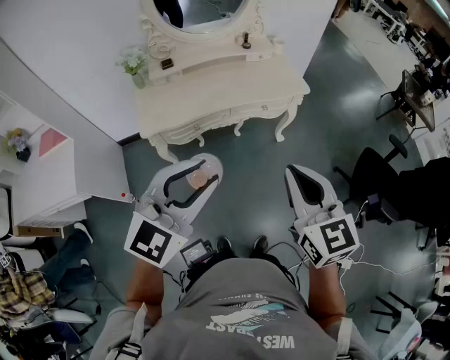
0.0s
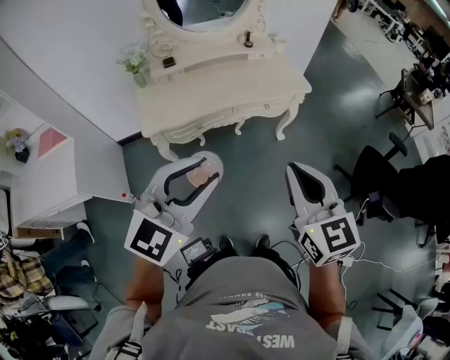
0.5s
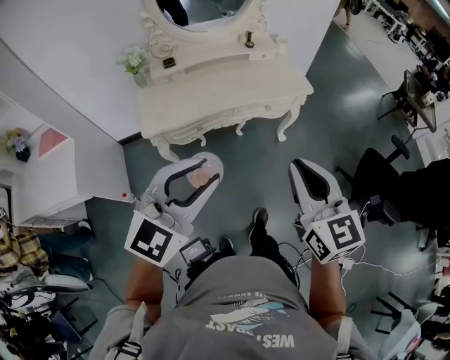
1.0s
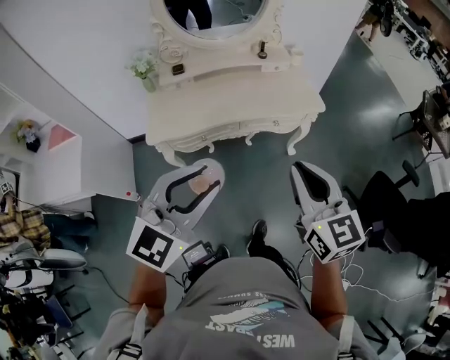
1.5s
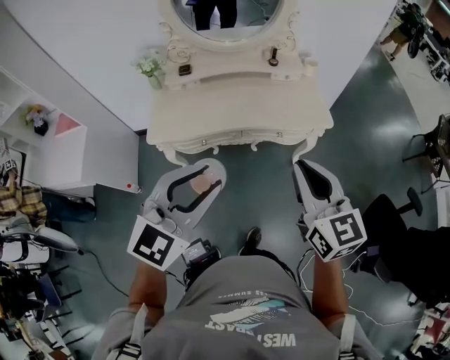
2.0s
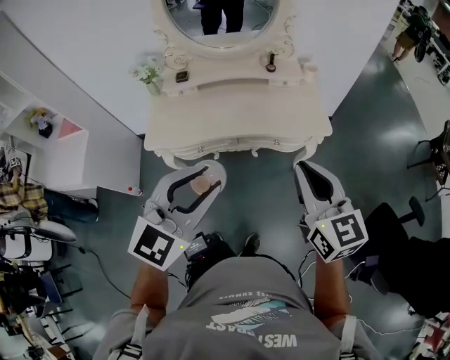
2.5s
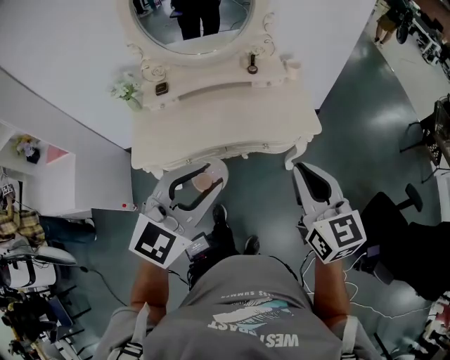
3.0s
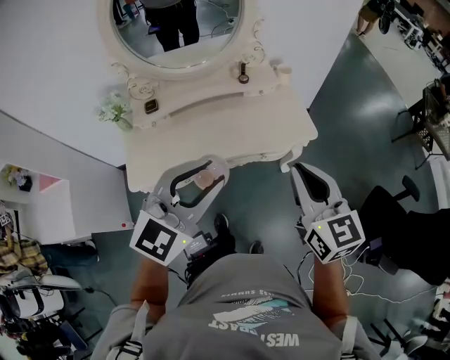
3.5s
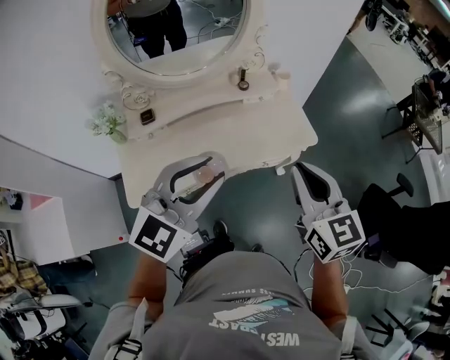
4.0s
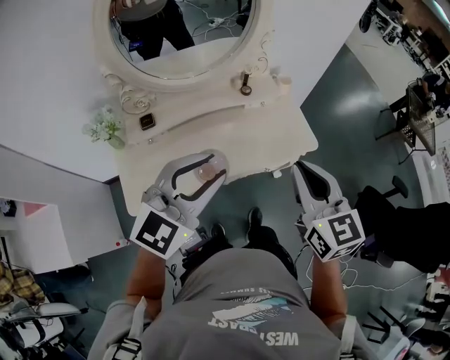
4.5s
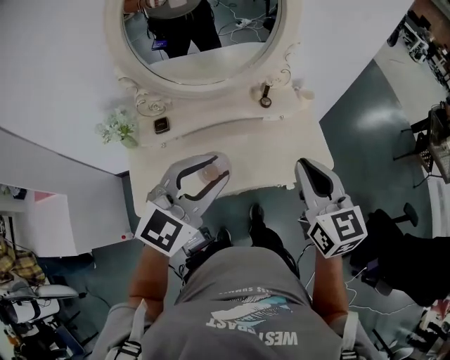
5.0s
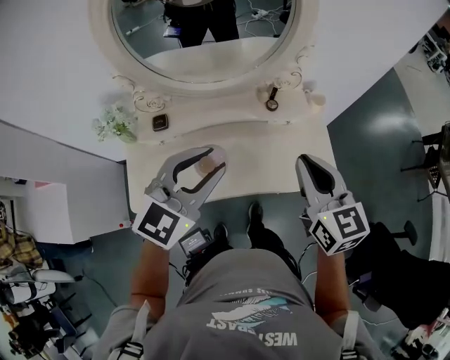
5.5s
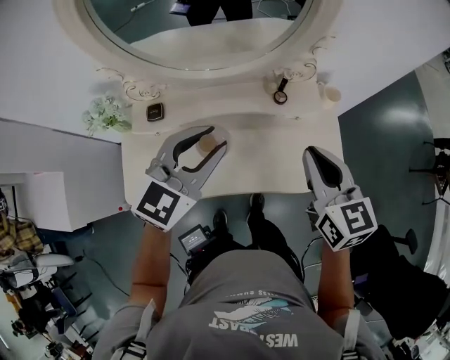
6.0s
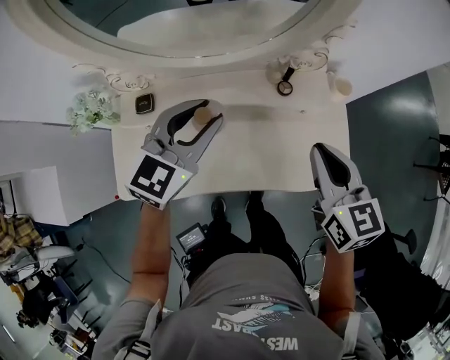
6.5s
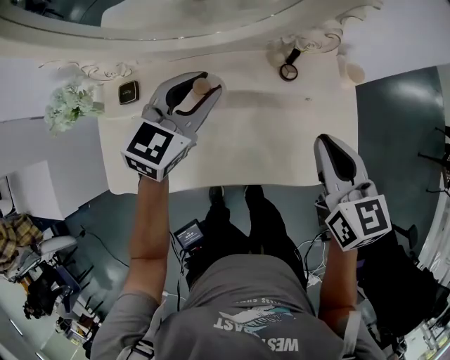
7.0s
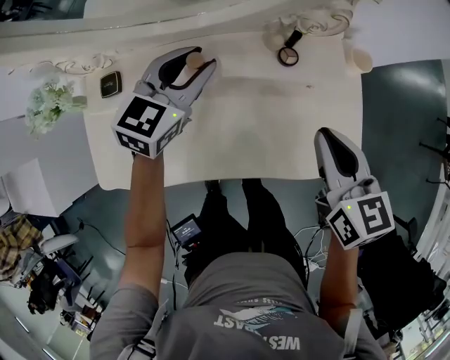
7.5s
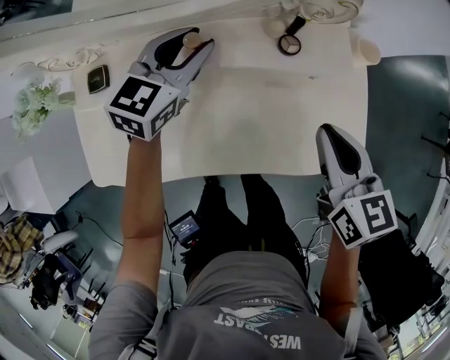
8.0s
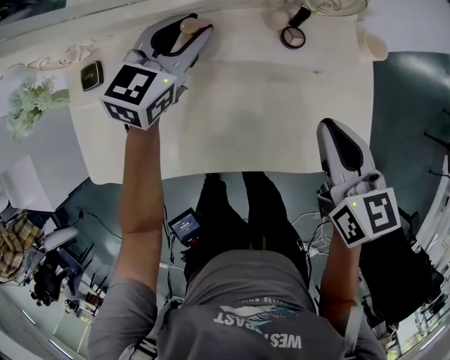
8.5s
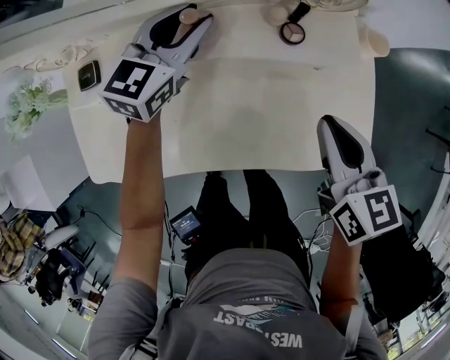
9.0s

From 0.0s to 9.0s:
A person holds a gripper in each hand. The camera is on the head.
From 0.0s to 2.0s: The grippers both shift forward by roughly 20 cm.
From 2.0s to 4.5s: The two grippers go some 25 cm forward.
From 4.5s to 7.0s: The two grippers go approximately 40 cm forward and downward. The left gripper changes its angle by approximately 30 degrees. Meanwhile the right gripper changes its angle by some 20 degrees.
From 7.0s to 9.0s: The right gripper travels downward by roughly 10 cm; the left gripper shifts about 15 cm downward and forward.

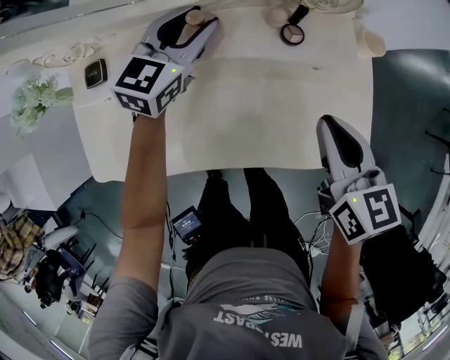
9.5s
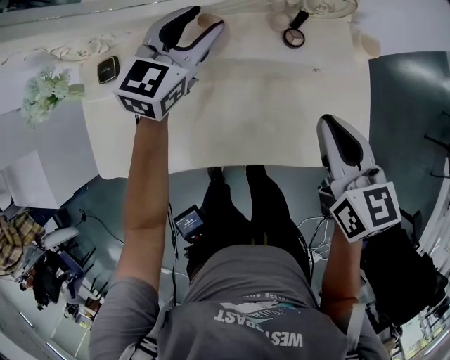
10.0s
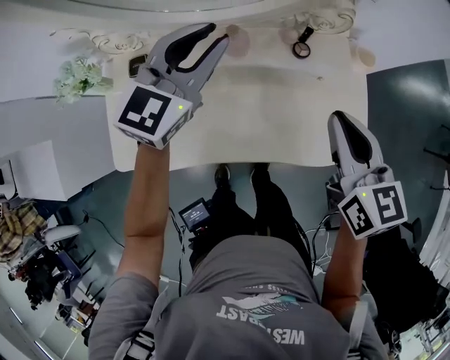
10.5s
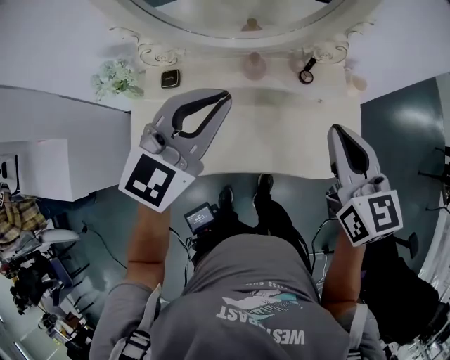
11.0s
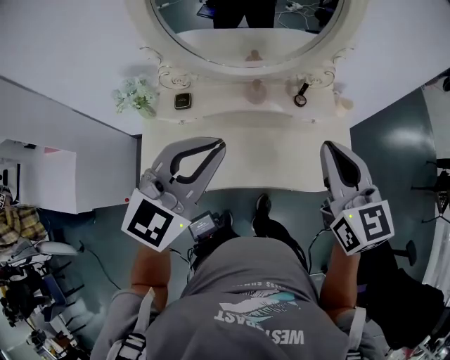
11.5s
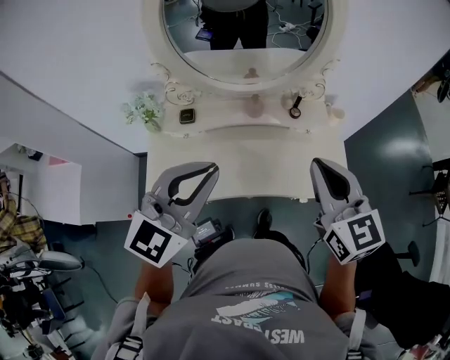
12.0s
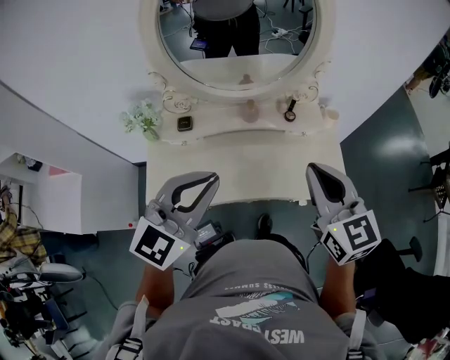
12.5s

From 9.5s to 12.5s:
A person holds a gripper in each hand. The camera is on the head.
From 9.5s to 11.0s: The left gripper heads upward and backward, covering approximately 35 cm, and closes its fingers; the right gripper is displaced upward by approximately 20 cm.
From 11.0s to 12.5s: The right gripper travels backward and upward by some 15 cm; the left gripper heads backward, covering roughly 15 cm.

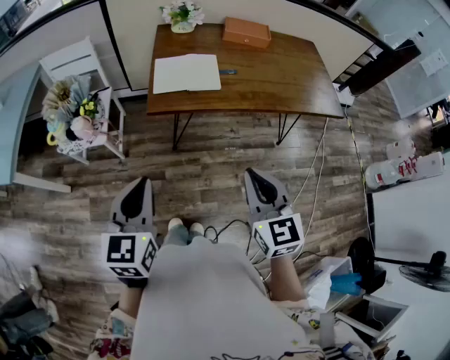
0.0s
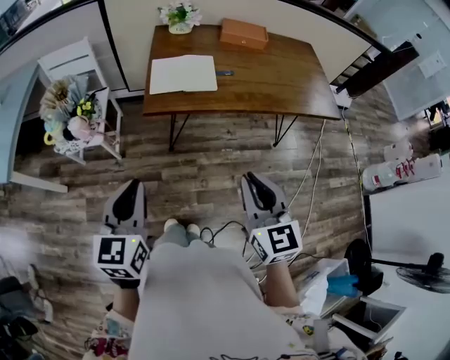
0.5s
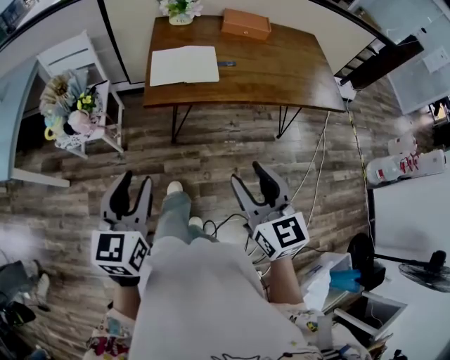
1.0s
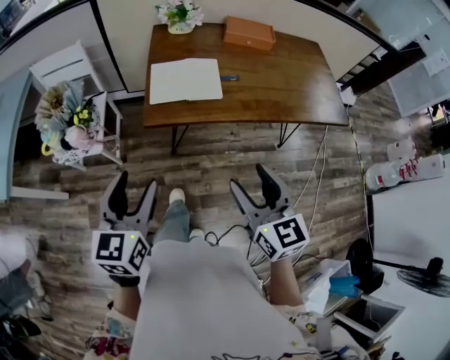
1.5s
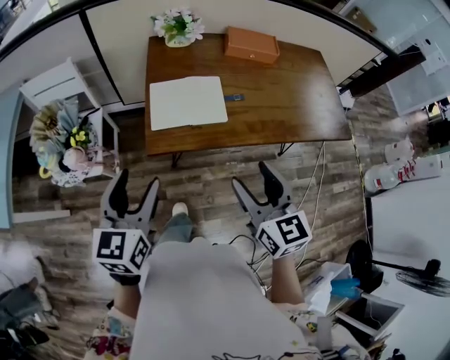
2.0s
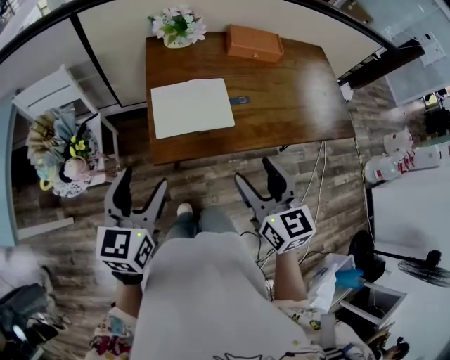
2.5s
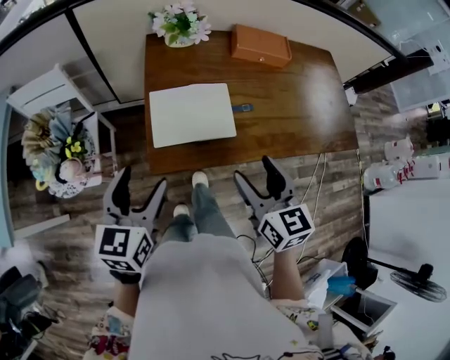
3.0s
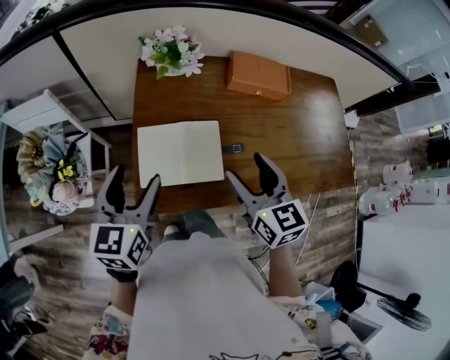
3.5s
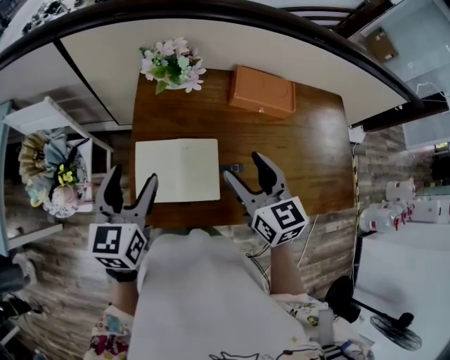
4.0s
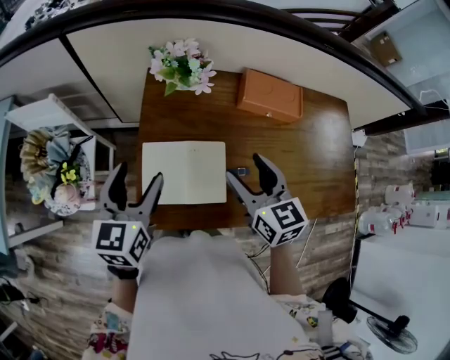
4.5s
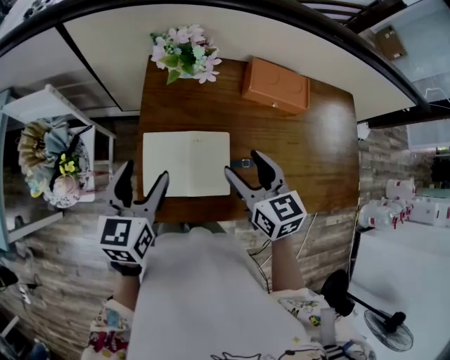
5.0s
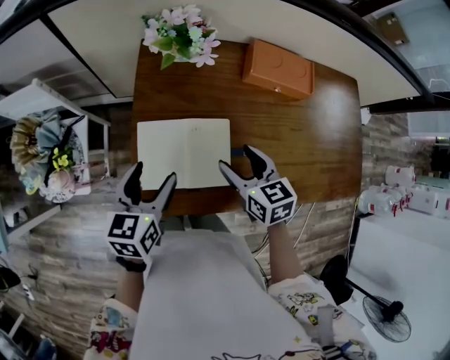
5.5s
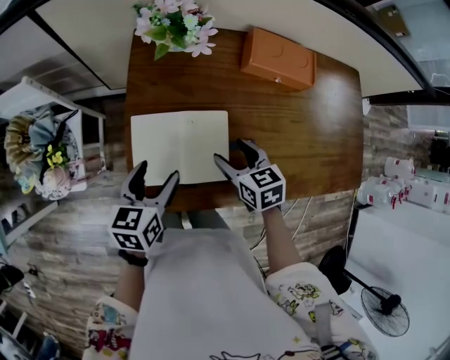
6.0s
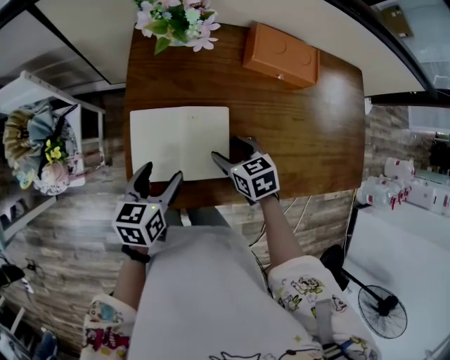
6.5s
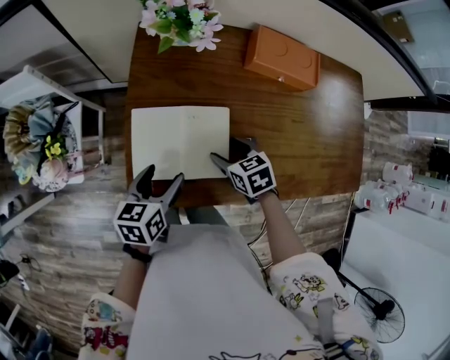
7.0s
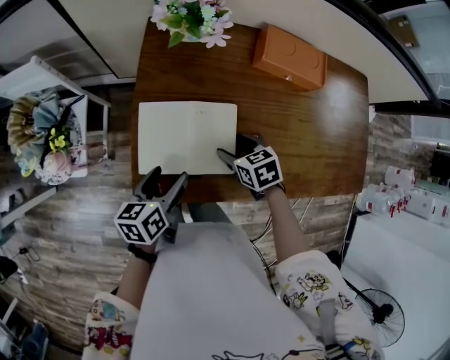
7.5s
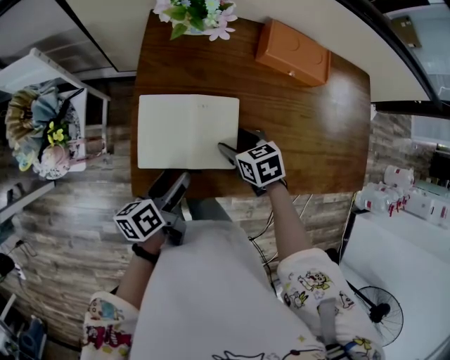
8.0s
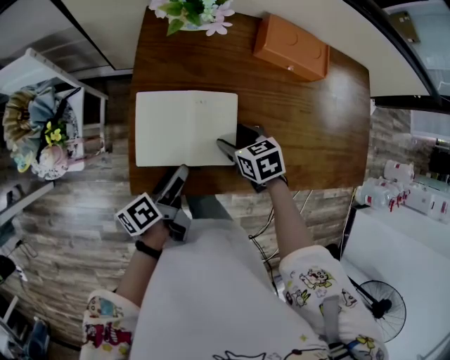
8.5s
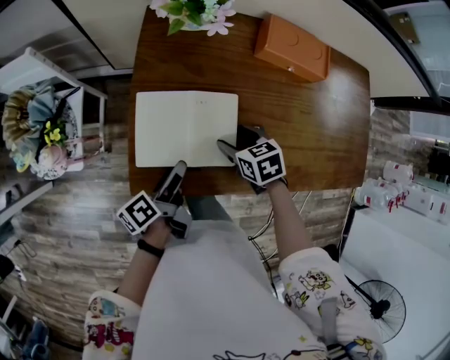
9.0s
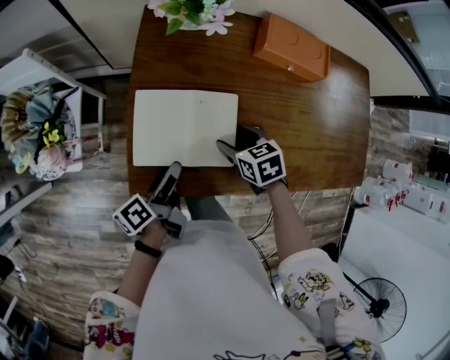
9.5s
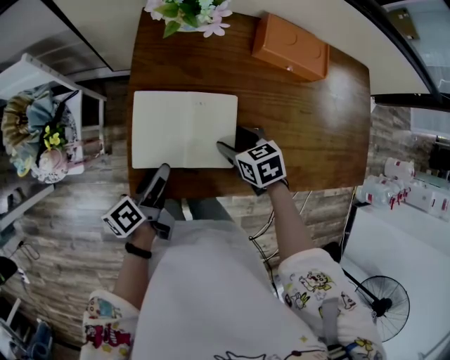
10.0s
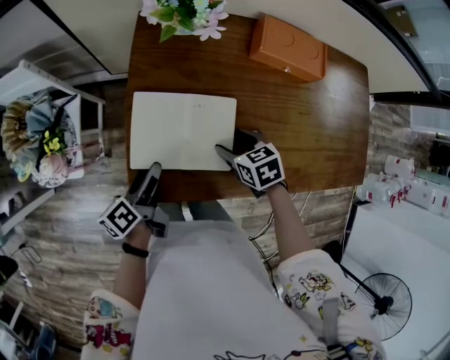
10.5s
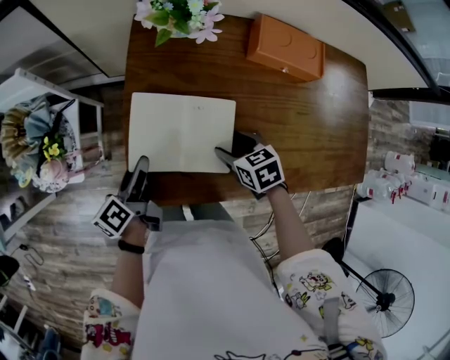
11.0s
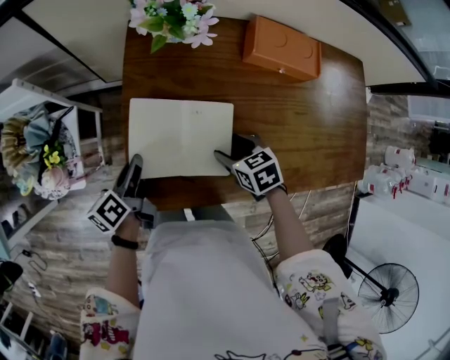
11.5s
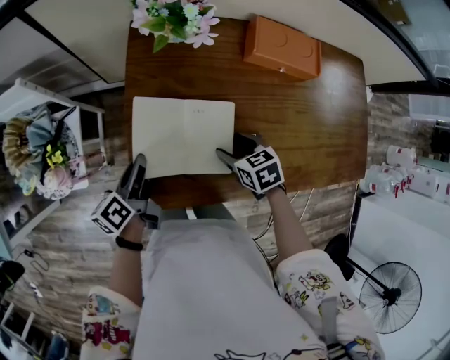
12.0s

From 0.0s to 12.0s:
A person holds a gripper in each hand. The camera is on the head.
From 0.0s to 2.0s: Both grippers move forward, roughly 20 cm. The left gripper opens its fingers. The right gripper opens its fingers.
From 2.0s to 4.0s: The grippers both shift forward by roughly 30 cm.
From 4.0s to 6.0s: The grippers both shift downward by some 15 cm. The right gripper rotates roughly 30 degrees; the left gripper turns by about 20 degrees.
From 6.0s to 8.0s: The right gripper shifts about 5 cm downward, while the left gripper shifts about 10 cm backward and downward, and turns by some 40 degrees.
From 10.0s to 12.0s: The left gripper shifts some 5 cm forward, and closes.

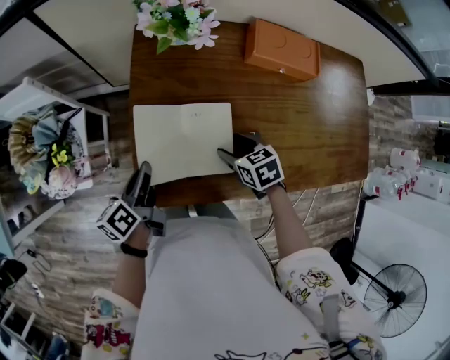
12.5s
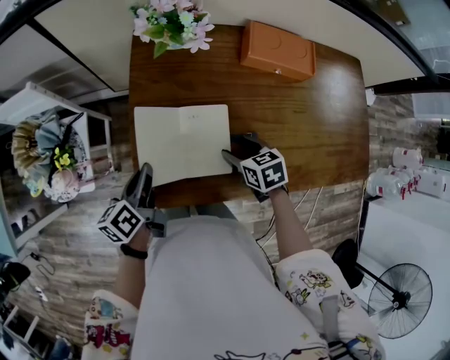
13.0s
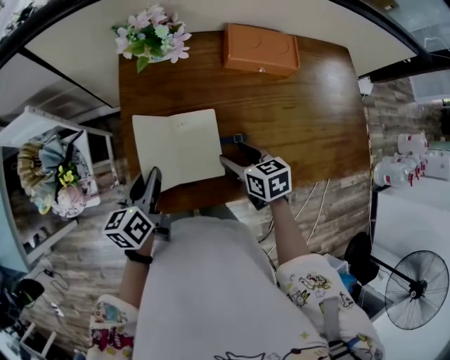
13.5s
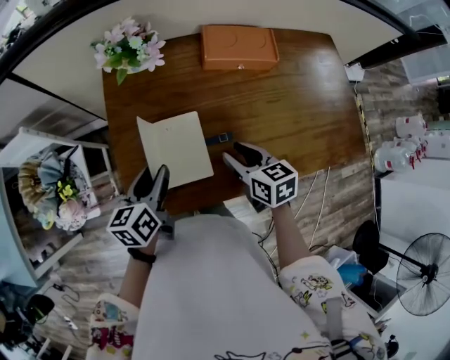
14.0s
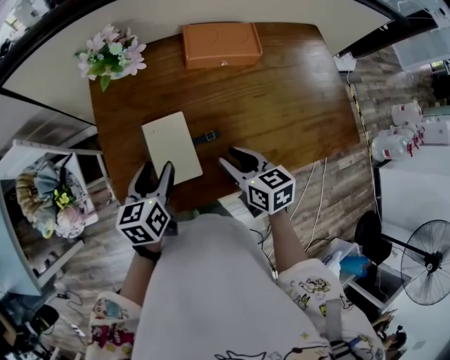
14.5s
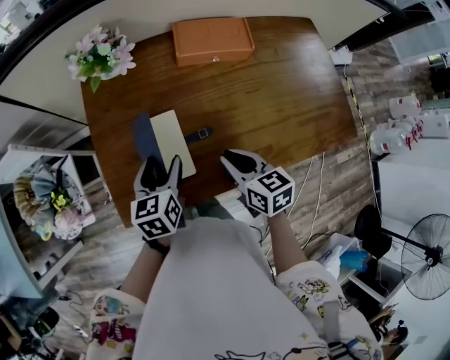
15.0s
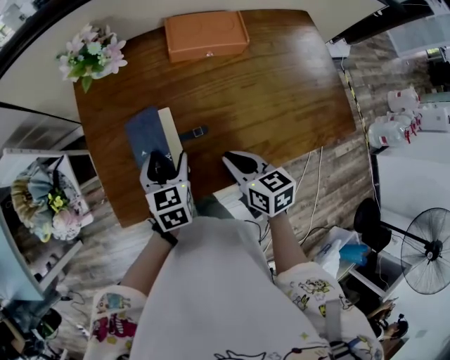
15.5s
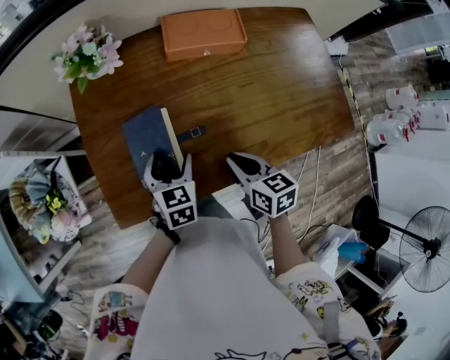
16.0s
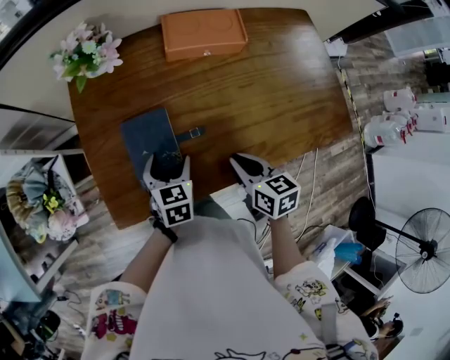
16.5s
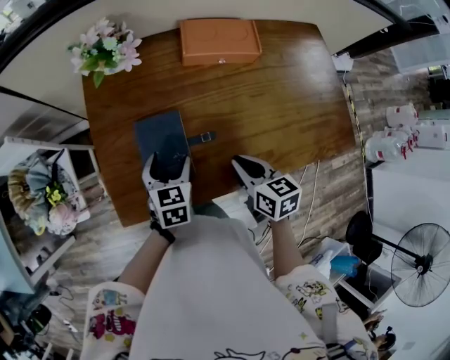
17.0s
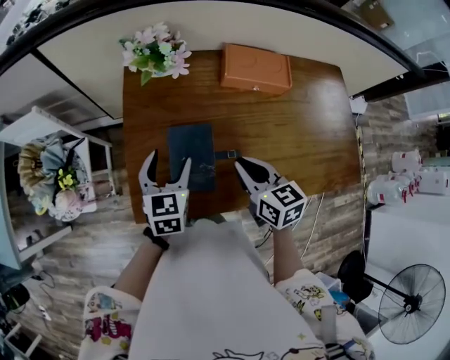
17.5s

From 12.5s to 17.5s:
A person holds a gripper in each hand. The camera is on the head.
From 12.5s to 15.0s: The right gripper moves upward, to the right and backward, roughly 15 cm, rotates roughly 30 degrees, and closes up. Meanwhile the left gripper goes roughly 20 cm to the right, rolls clockwise, seen from behind, by some 40 degrees, and opens.
From 15.0s to 17.5s: The right gripper moves some 10 cm; the left gripper is displaced to the left by about 5 cm.
